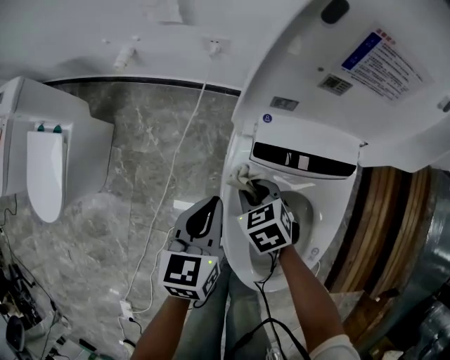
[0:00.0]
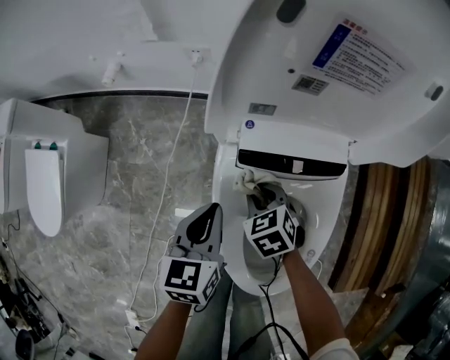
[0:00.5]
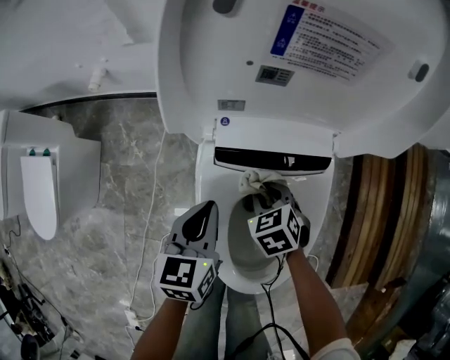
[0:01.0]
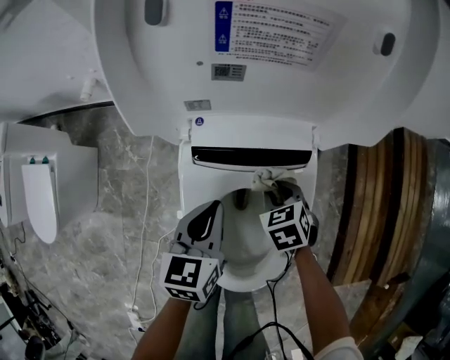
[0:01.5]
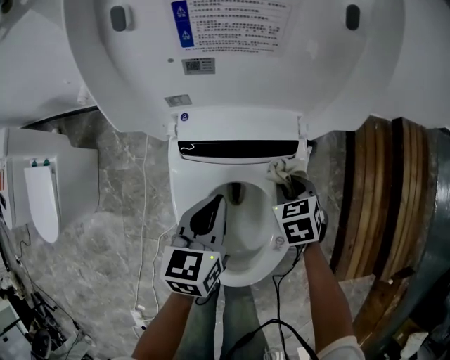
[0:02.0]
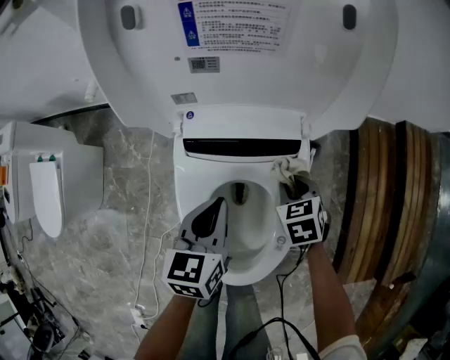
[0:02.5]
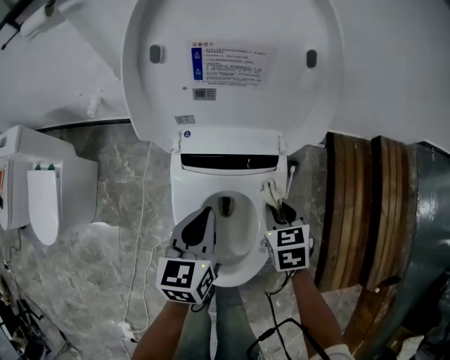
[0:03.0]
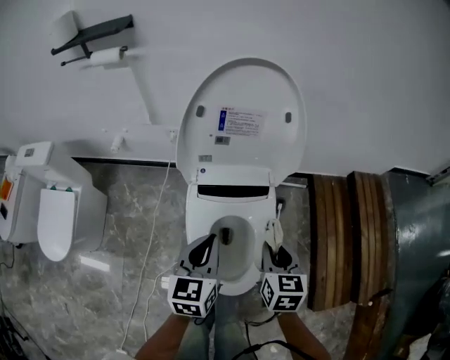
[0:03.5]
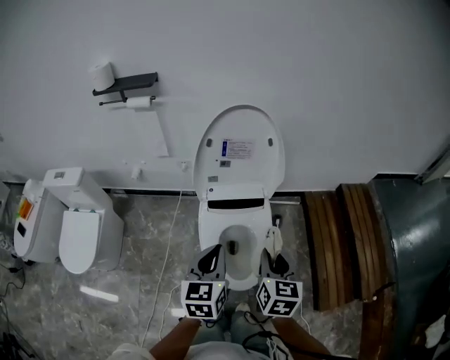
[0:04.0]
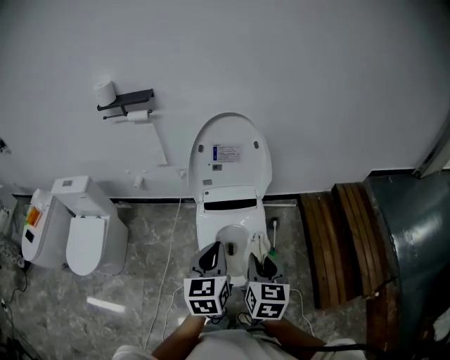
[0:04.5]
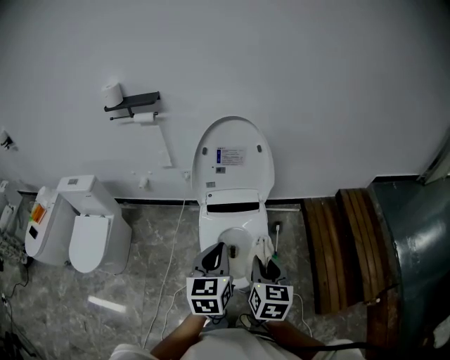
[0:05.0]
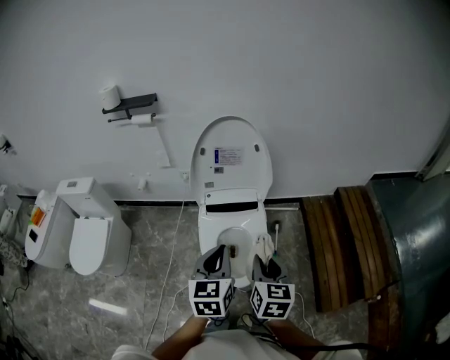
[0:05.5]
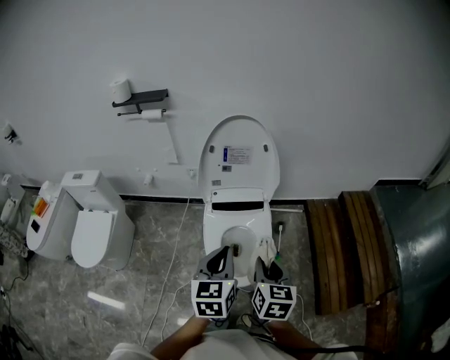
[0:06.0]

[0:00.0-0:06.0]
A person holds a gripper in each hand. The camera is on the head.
0:00.0 to 0:02.0: The right gripper goes approximately 25 cm to the right, and turns by approximately 20 degrees. Meanwhile the left gripper moves to the right, some 20 cm.
0:02.0 to 0:04.0: Both grippers move upward and backward, some 40 cm. The right gripper angles its fingers upward, by approximately 40 degrees.
0:04.0 to 0:06.0: The grippers both shift backward by about 5 cm.

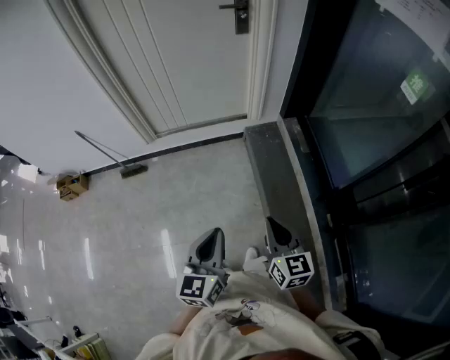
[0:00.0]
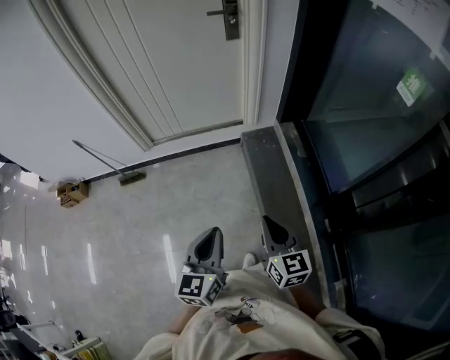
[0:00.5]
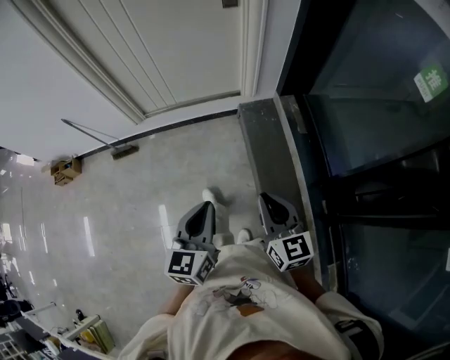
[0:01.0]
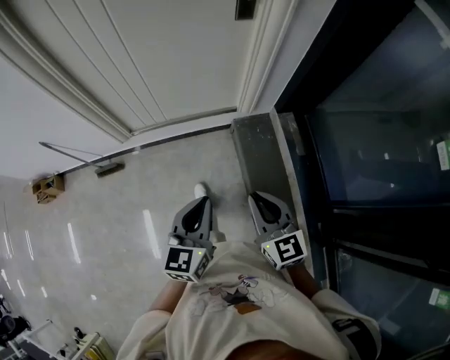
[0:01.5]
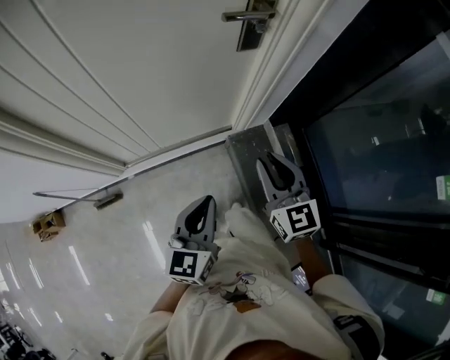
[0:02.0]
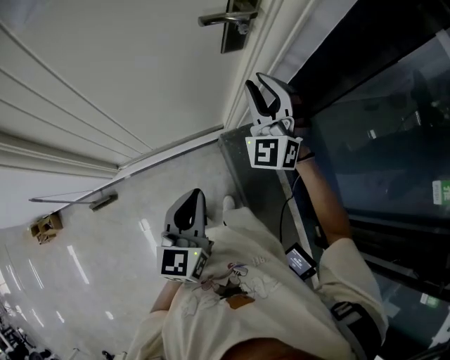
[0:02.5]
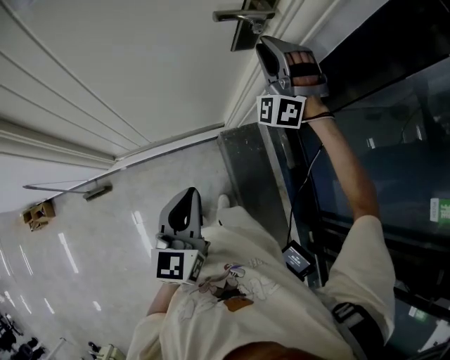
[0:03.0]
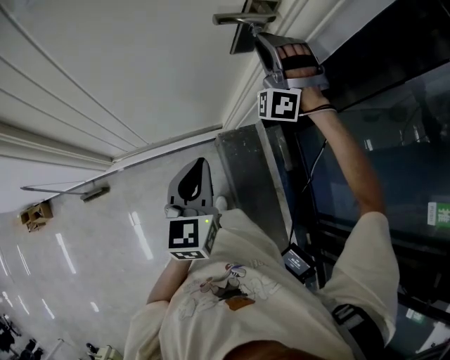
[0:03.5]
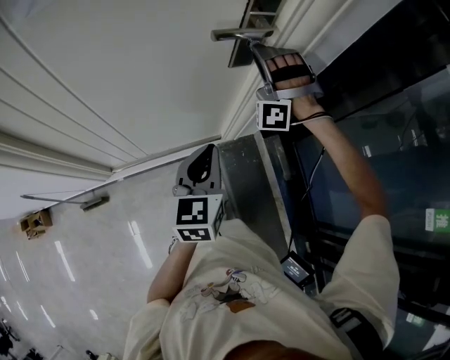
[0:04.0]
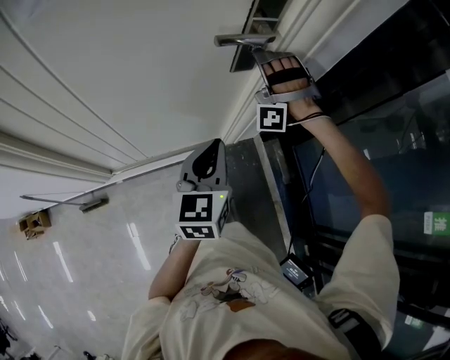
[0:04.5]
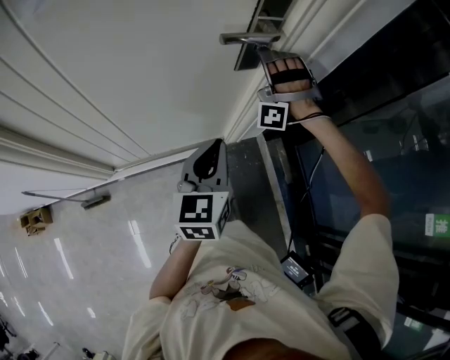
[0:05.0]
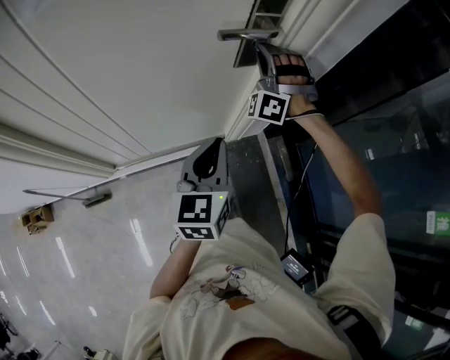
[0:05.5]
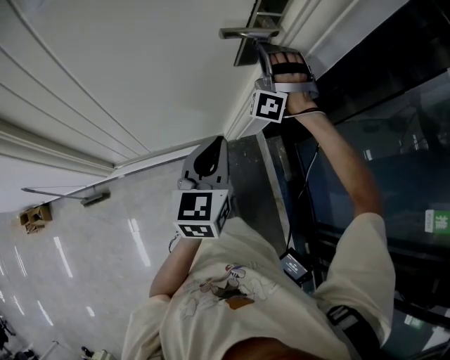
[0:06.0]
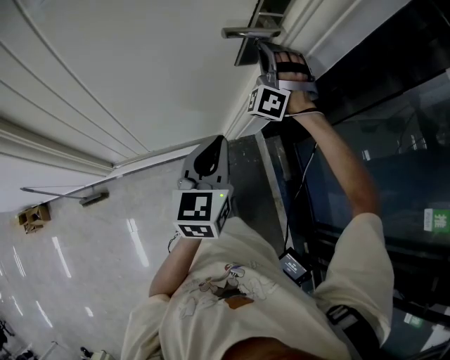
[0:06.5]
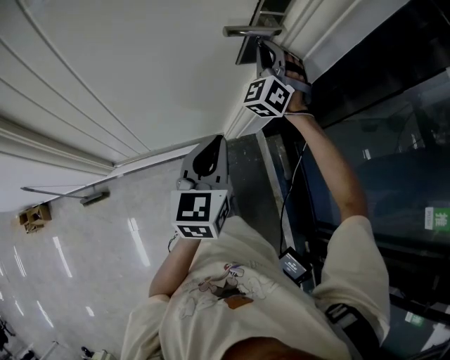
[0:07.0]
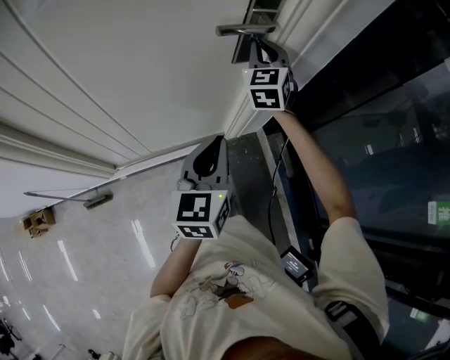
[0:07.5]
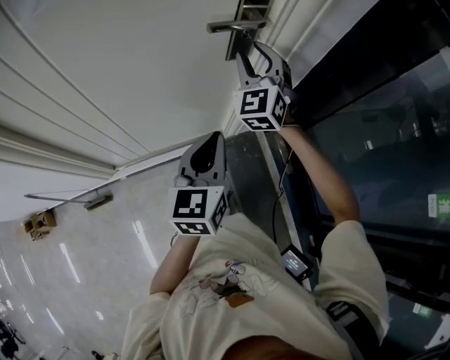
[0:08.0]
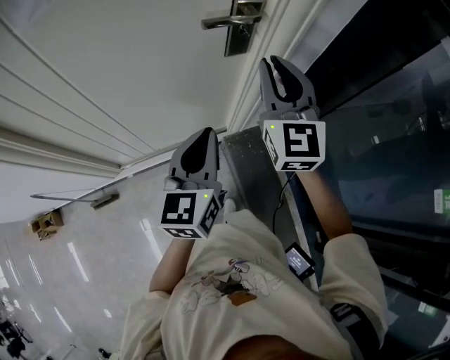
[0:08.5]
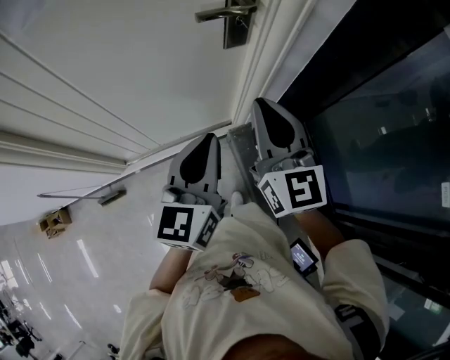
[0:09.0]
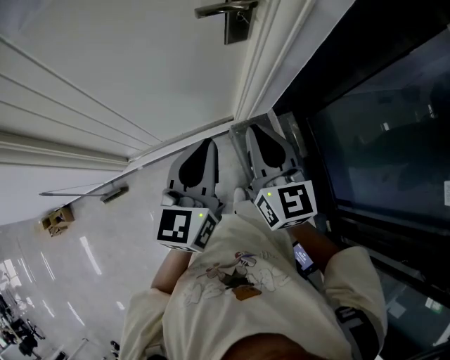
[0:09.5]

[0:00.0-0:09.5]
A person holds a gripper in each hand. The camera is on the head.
0:00.0 to 0:02.0: The pair of grippers is taken forward, about 60 cm.
0:02.0 to 0:04.0: The left gripper heads forward, covering some 20 cm. Meanwhile the right gripper is displaced forward by some 30 cm, and rolls counterclockwise, seen from behind, by about 100 degrees.
0:04.0 to 0:05.5: There are only small adjustments of the grippers.
0:05.5 to 0:07.5: The right gripper rolls clockwise, seen from behind, by approximately 70 degrees.
0:07.5 to 0:09.5: The left gripper moves backward, roughly 5 cm; the right gripper is displaced backward by roughly 25 cm, changes its angle by about 40 degrees, and opens, then closes again.

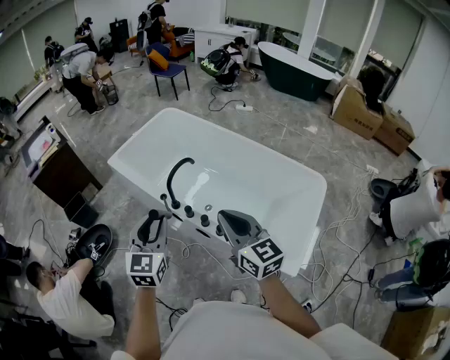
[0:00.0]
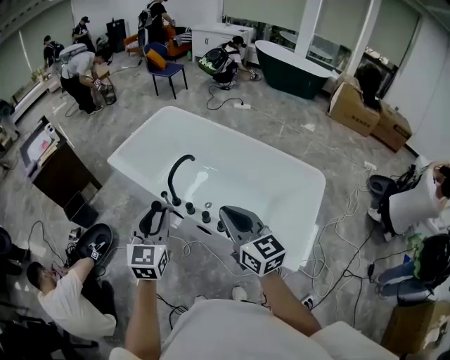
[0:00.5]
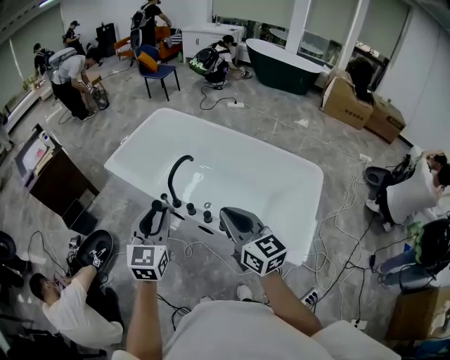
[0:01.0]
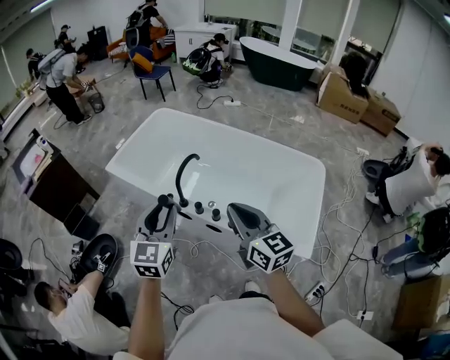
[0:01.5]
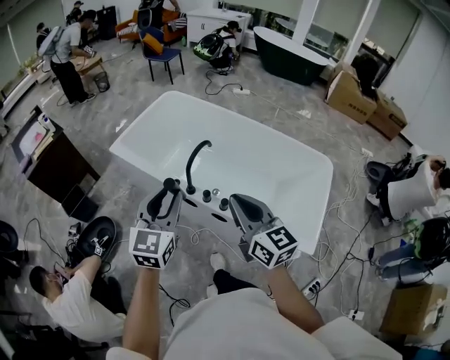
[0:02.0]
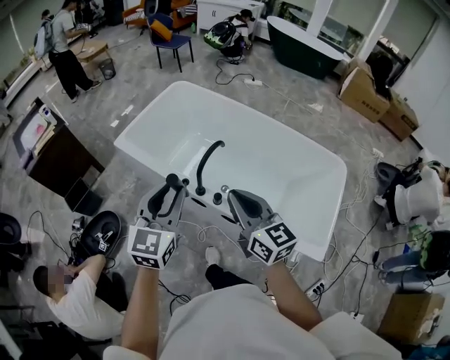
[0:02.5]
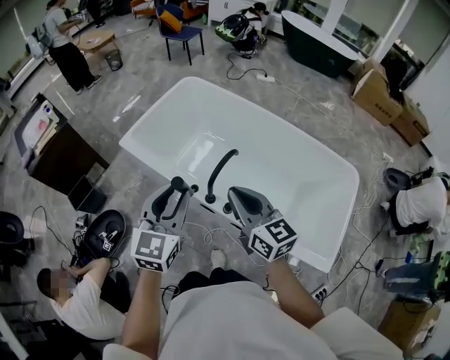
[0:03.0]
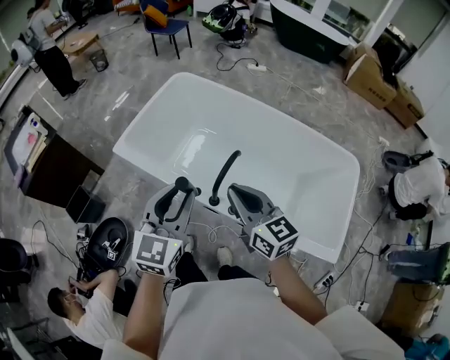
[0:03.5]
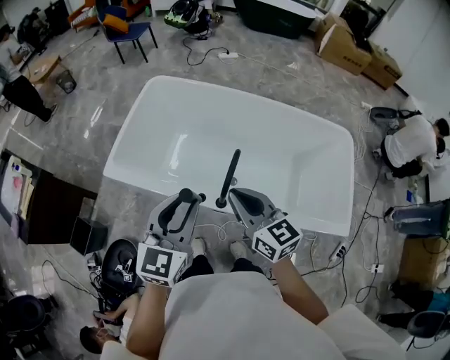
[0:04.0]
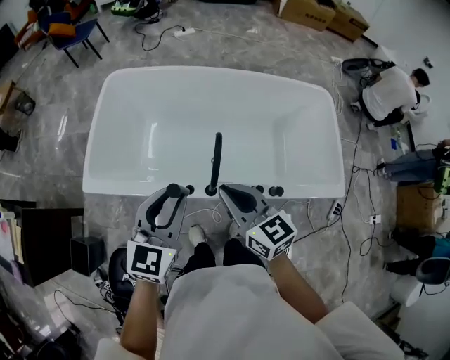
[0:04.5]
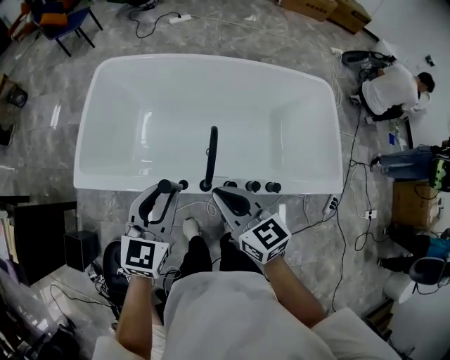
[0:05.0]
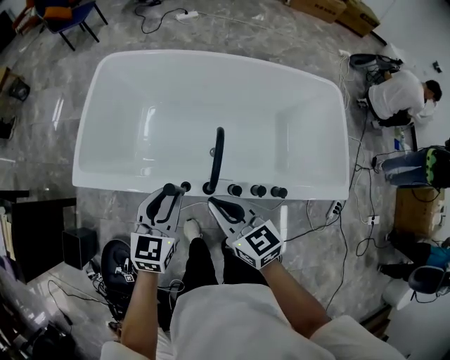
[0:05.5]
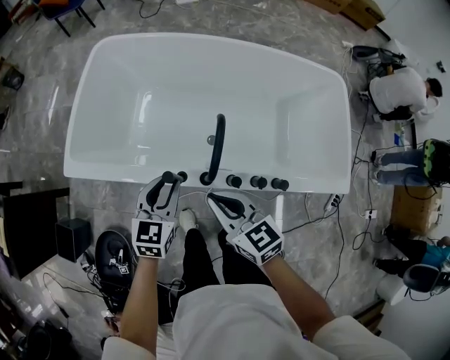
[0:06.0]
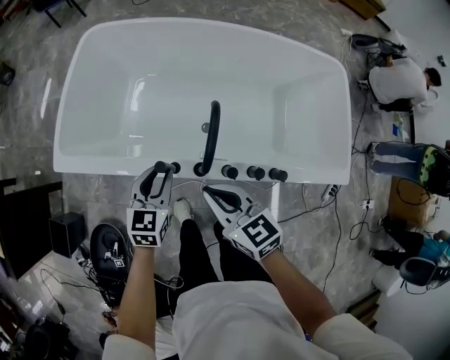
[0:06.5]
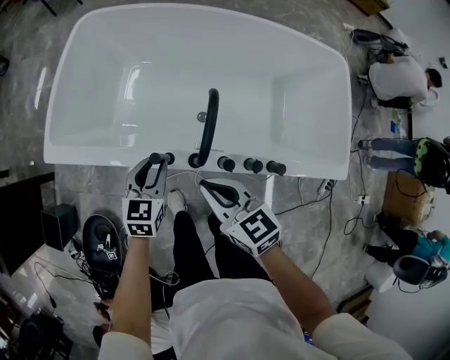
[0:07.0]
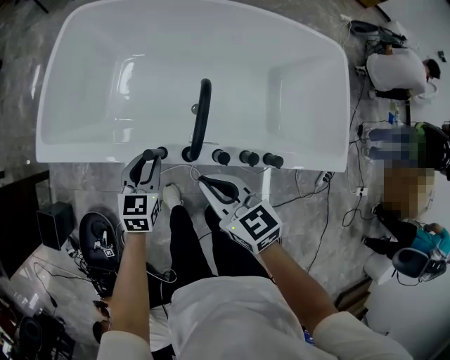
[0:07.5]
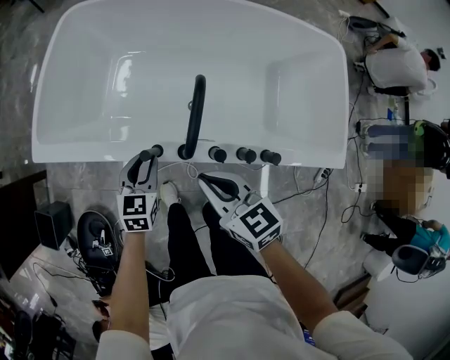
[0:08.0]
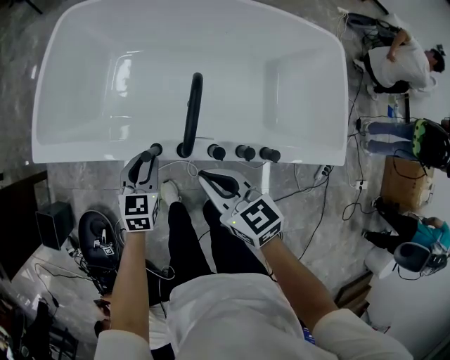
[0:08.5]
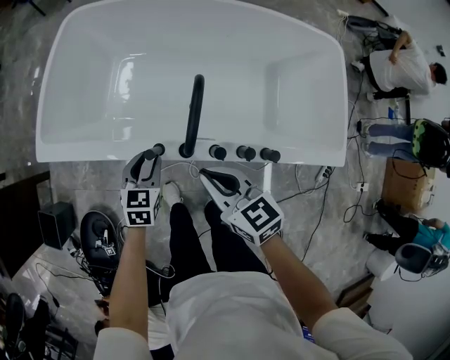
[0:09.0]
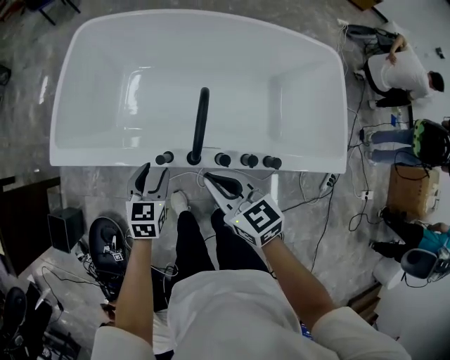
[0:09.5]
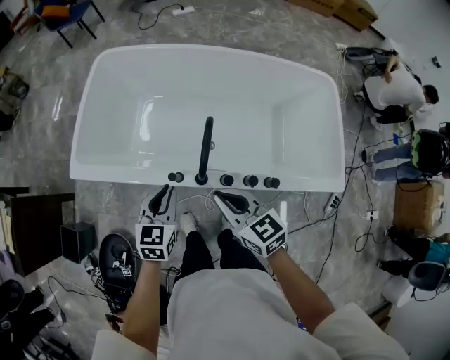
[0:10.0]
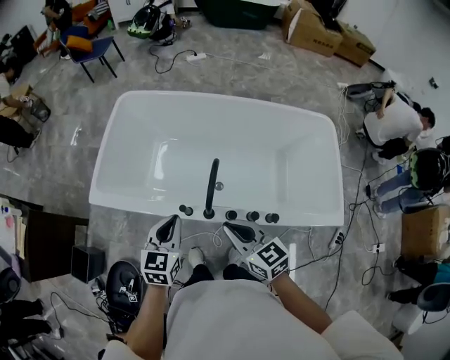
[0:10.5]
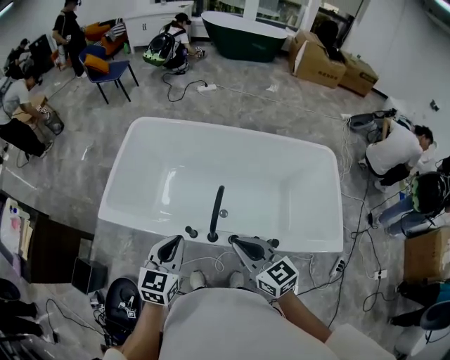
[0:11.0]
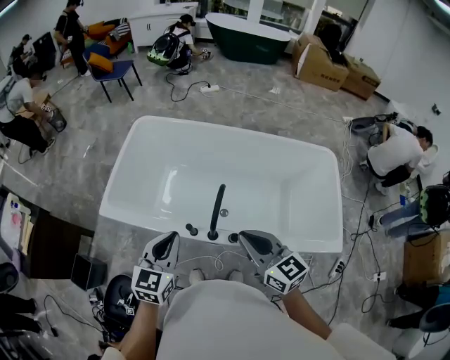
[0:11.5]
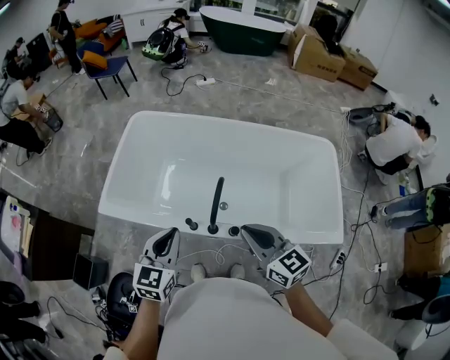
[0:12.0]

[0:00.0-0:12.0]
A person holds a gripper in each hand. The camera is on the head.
0:00.0 to 0:02.0: Both grippers move to the left, some 10 cm.
0:02.0 to 0:04.0: Both grippers move forward and to the left, some 25 cm. The left gripper rotates approximately 20 degrees.
0:04.0 to 0:06.0: The left gripper goes about 20 cm downward. Meanwhile the right gripper goes approximately 15 cm downward.
0:06.0 to 0:08.0: The left gripper travels downward by approximately 15 cm, while the right gripper shifts roughly 5 cm downward.
0:08.0 to 0:10.0: The left gripper heads upward, covering roughly 15 cm, and opens, then closes again. Meanwhile the right gripper shifts approximately 10 cm upward.
0:10.0 to 0:12.0: The grippers both shift upward by roughly 15 cm.
